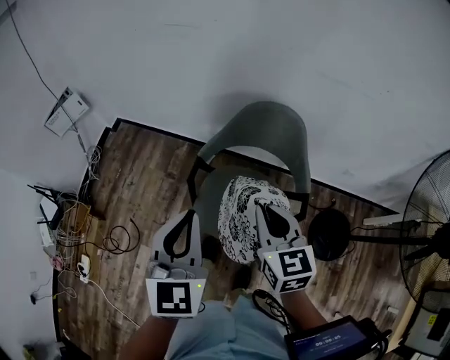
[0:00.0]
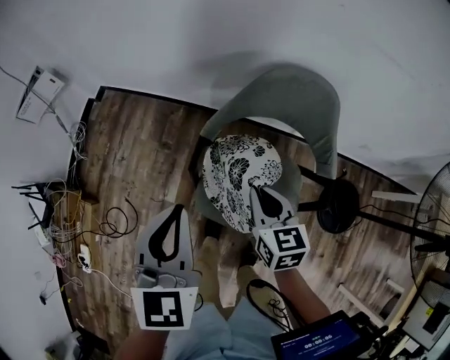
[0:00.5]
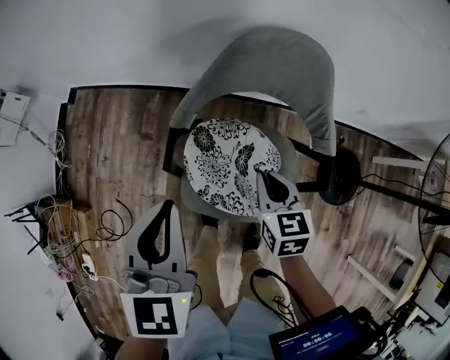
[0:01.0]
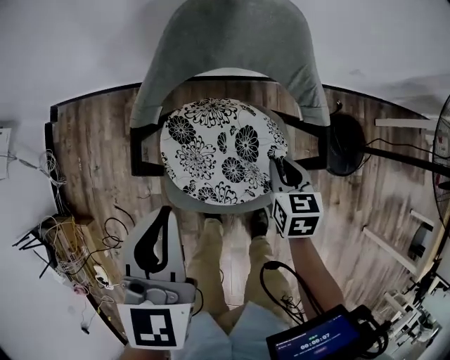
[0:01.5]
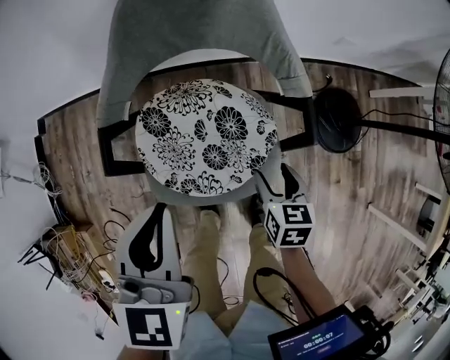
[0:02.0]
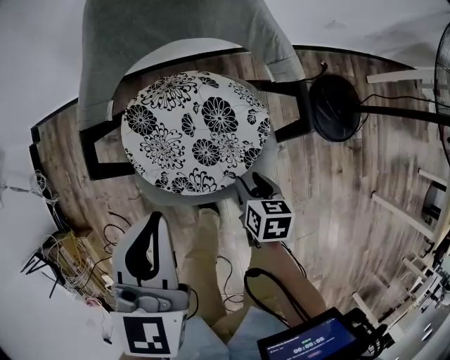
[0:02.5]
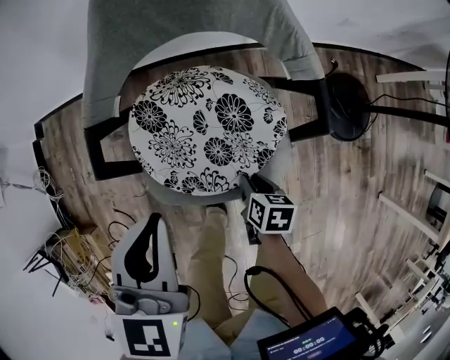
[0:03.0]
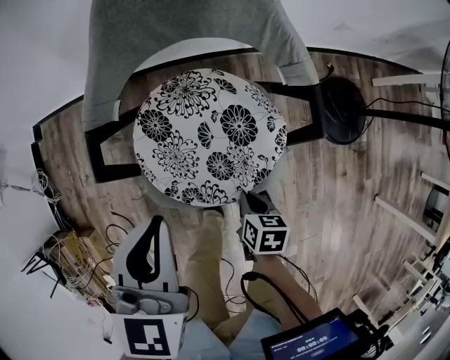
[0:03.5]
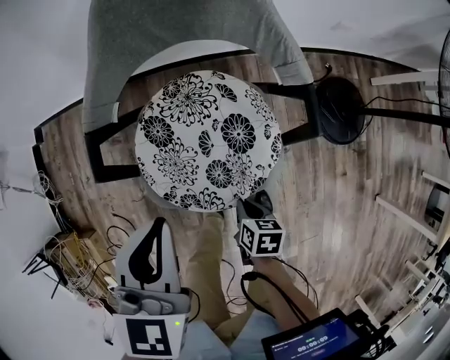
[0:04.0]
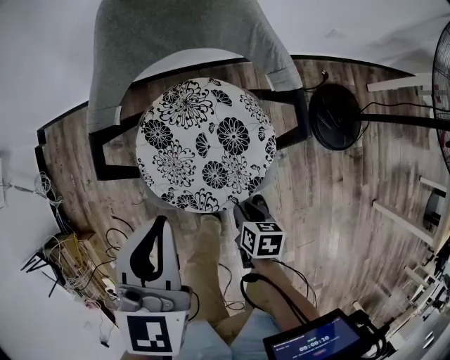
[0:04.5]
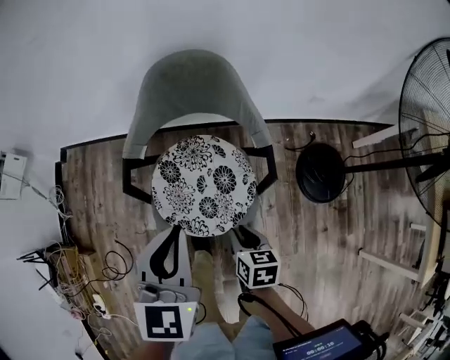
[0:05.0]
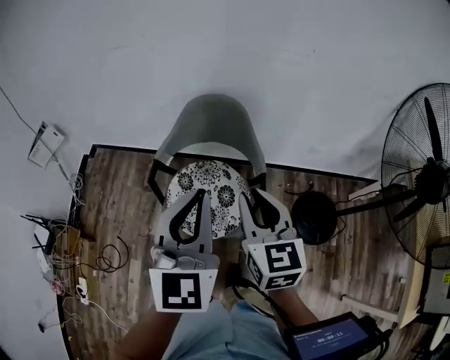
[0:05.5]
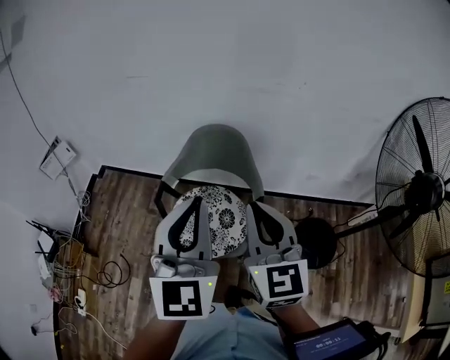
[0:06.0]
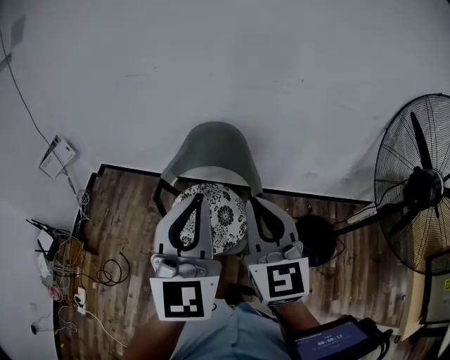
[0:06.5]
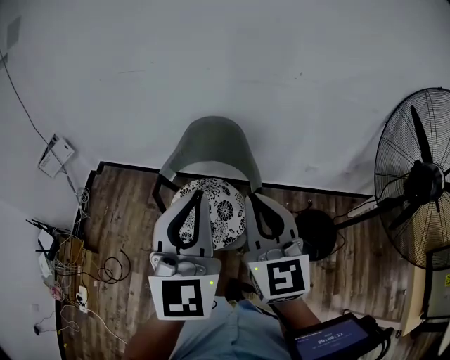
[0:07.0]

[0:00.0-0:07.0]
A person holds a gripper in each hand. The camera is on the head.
0:00.0 to 0:02.0: The right gripper moves downward, roughly 35 cm, changes its angle by roughly 40 degrees, and opens up. Meanwhile the left gripper is displaced downward by approximately 20 cm, and swivels some 30 degrees.
0:02.0 to 0:03.5: The right gripper travels downward, backward and to the left by approximately 15 cm, changes its angle by about 20 degrees, and closes up.
0:03.5 to 0:05.0: The right gripper travels upward by roughly 20 cm. The left gripper shifts about 15 cm upward and to the right.
0:05.0 to 0:07.0: The left gripper moves upward, some 25 cm, and changes its angle by some 30 degrees. Meanwhile the right gripper moves upward, roughly 40 cm, points its fingers some 50 degrees further upward, and closes its fingers.

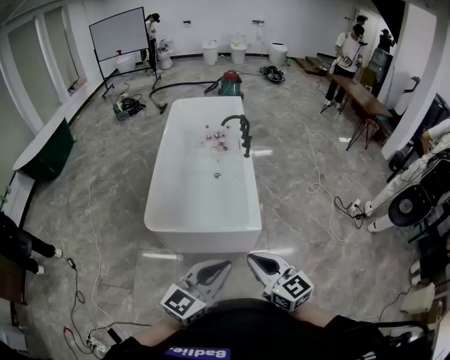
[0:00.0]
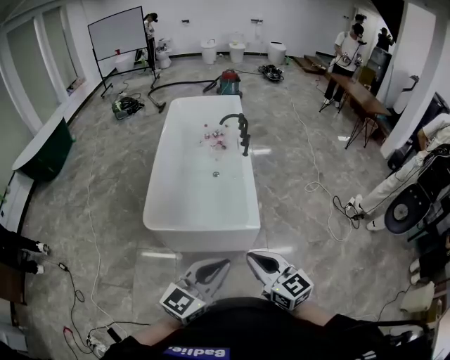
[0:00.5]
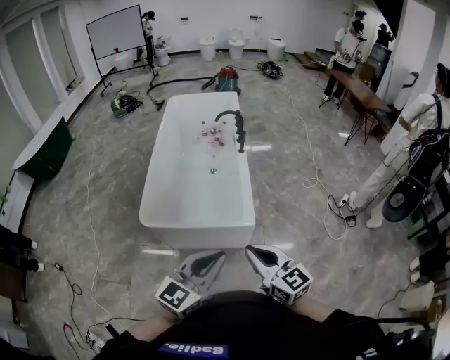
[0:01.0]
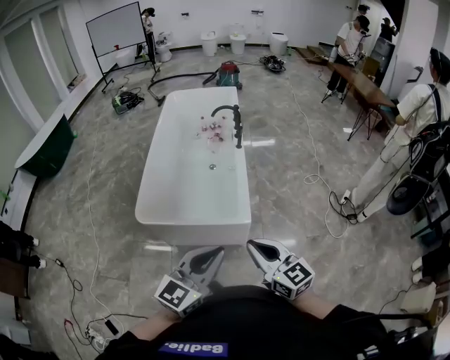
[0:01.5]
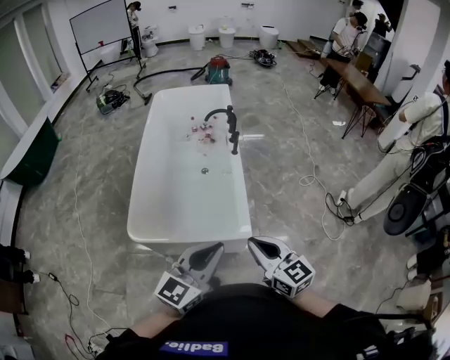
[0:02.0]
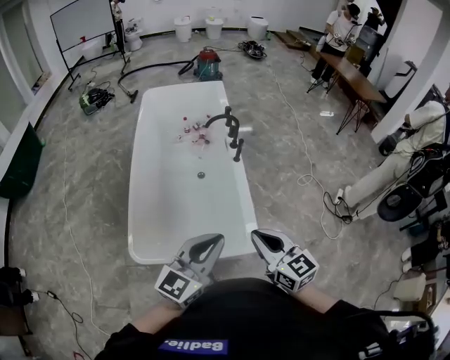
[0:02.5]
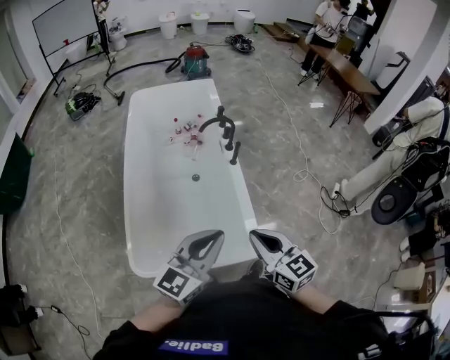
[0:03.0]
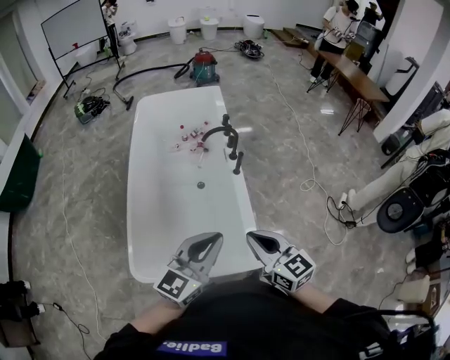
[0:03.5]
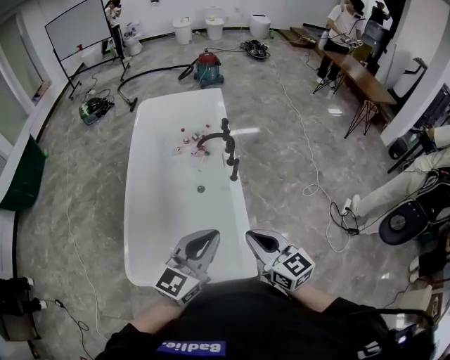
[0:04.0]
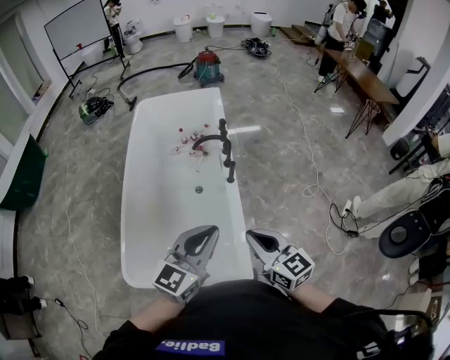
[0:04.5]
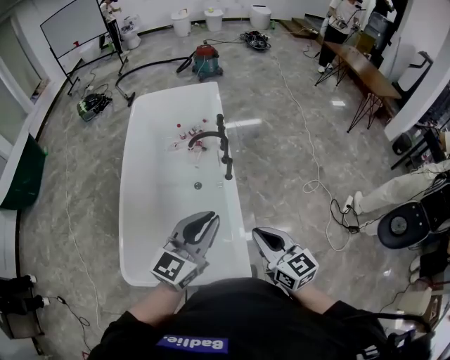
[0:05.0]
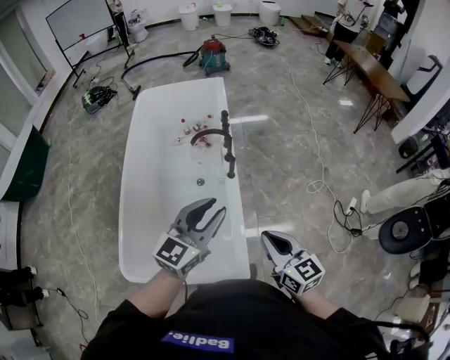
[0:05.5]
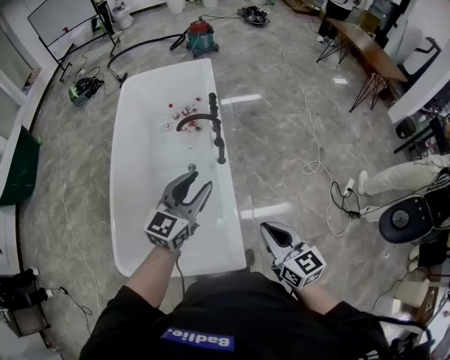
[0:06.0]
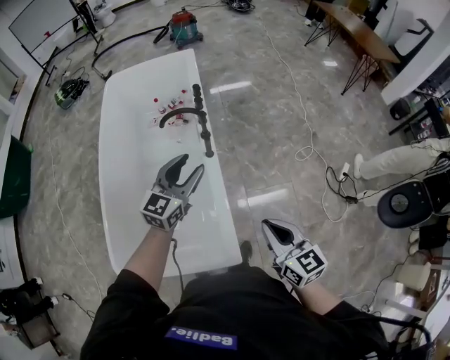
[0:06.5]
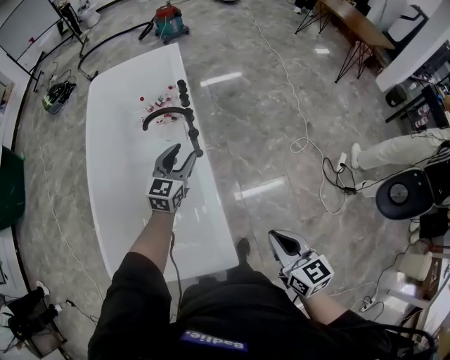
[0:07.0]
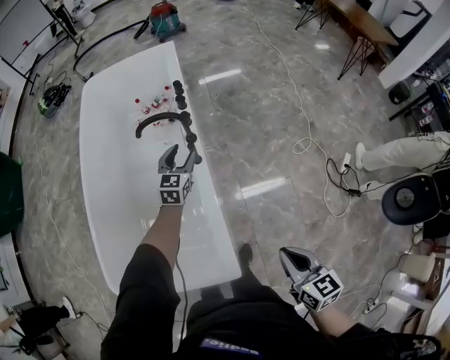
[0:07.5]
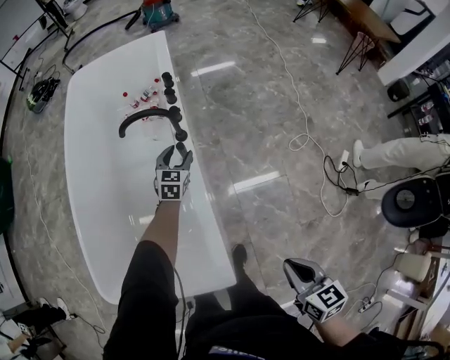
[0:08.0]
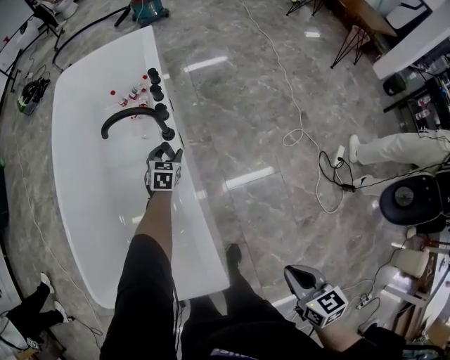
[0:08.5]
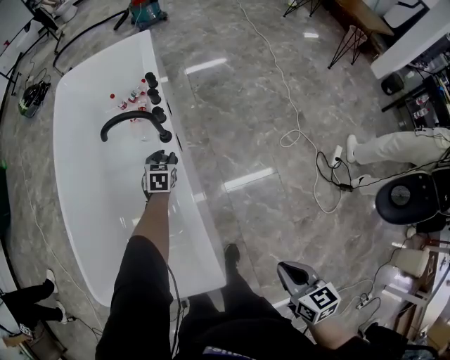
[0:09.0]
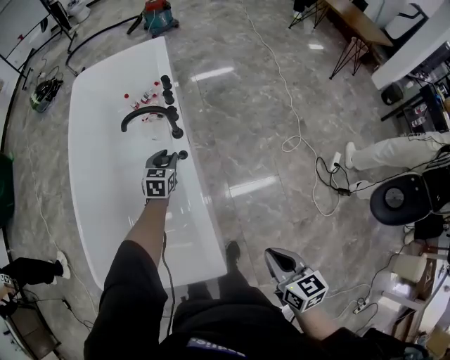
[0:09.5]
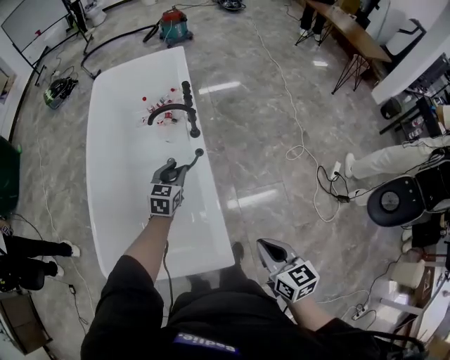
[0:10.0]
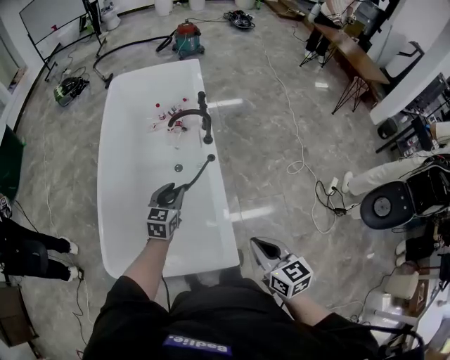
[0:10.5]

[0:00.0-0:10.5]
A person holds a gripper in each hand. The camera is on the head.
0:00.0 to 0:02.0: The grippers both shift forward by some 15 cm.
0:02.0 to 0:04.0: The two grippers go approximately 30 cm forward.
0:04.0 to 0:06.5: The left gripper goes some 30 cm forward and downward, and opens up, while the right gripper shifts roughly 20 cm to the right, forward and downward.
0:06.5 to 0:08.5: The right gripper moves downward and to the right, some 25 cm, and turns by about 30 degrees. Meanwhile the left gripper travels downward and forward by roughly 50 cm, and points its fingers approximately 30 degrees further downward.
0:08.5 to 0:10.5: The left gripper shifts about 40 cm backward, upward and to the left, and closes its fingers, while the right gripper moves to the left and upward, roughly 25 cm, and turns by roughly 20 degrees.

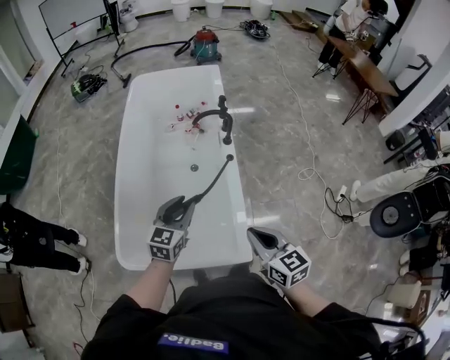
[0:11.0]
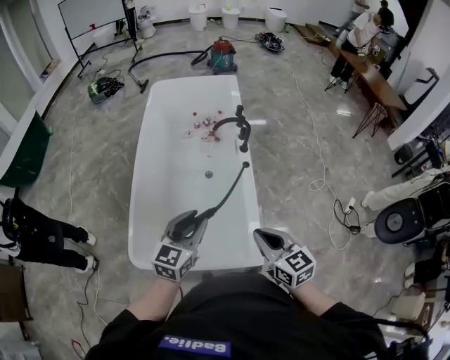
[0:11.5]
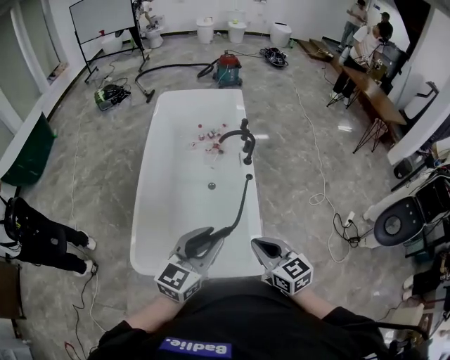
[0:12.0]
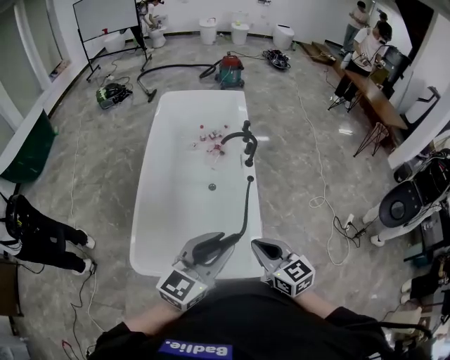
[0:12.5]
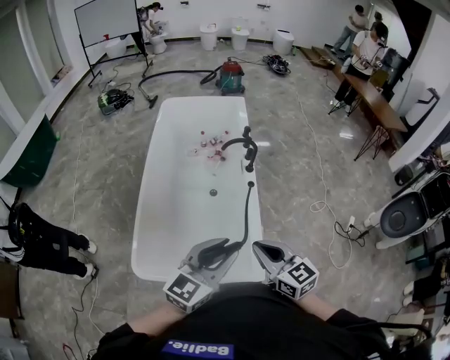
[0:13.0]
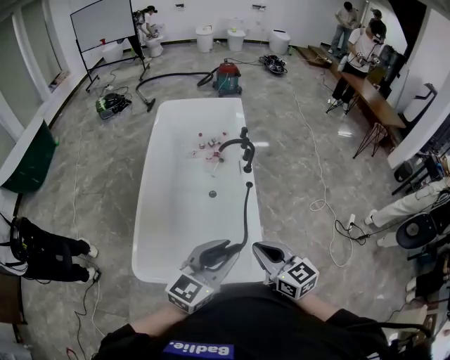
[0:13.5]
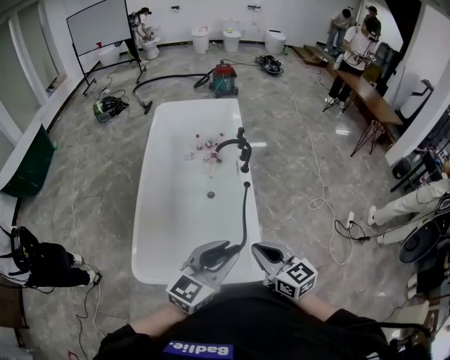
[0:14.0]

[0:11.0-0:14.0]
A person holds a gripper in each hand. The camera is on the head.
0:11.0 to 0:12.5: The right gripper goes roughly 10 cm to the left. Meanwhile the left gripper is displaced upward and backward by about 25 cm, and changes its angle by about 20 degrees.
0:12.5 to 0:14.0: The grippers make only small movements.

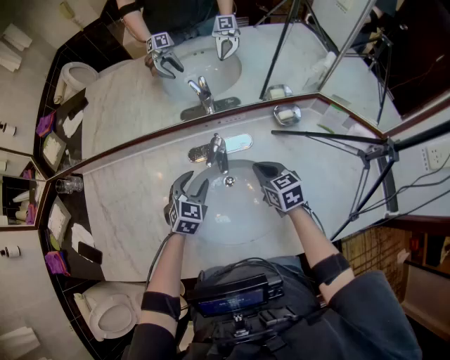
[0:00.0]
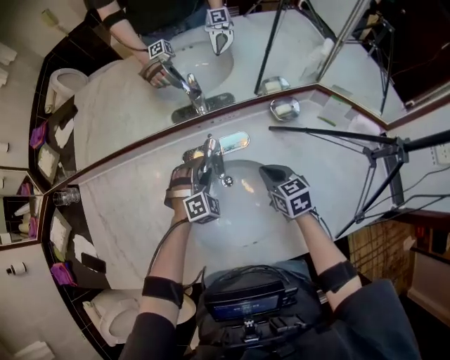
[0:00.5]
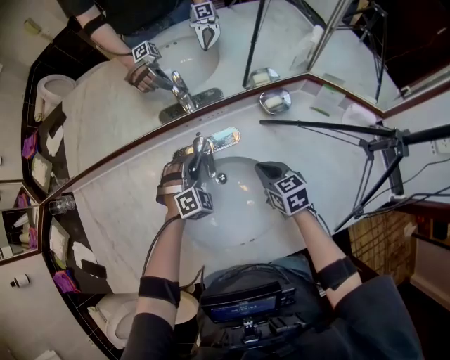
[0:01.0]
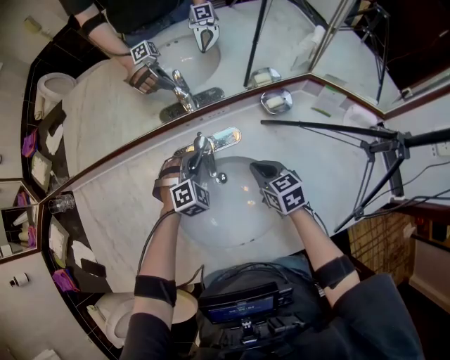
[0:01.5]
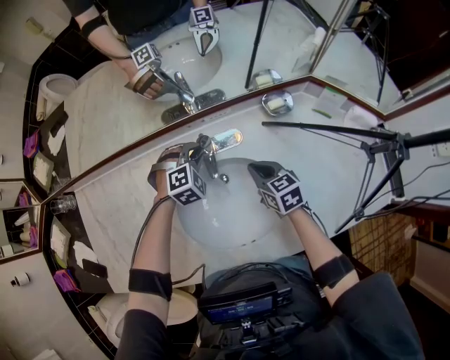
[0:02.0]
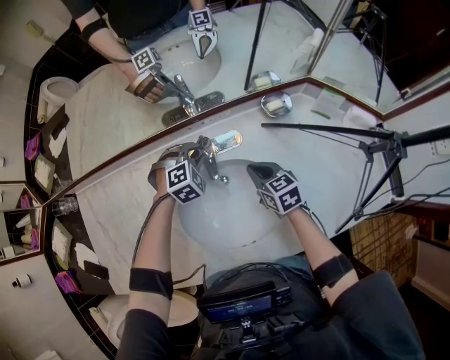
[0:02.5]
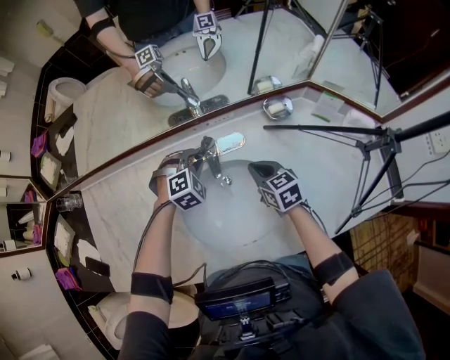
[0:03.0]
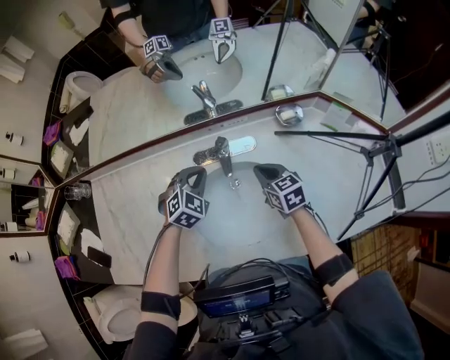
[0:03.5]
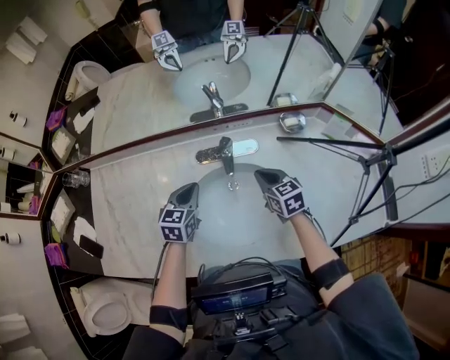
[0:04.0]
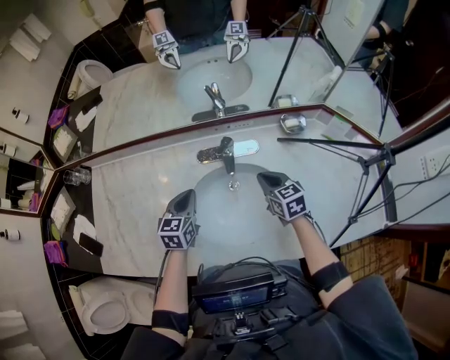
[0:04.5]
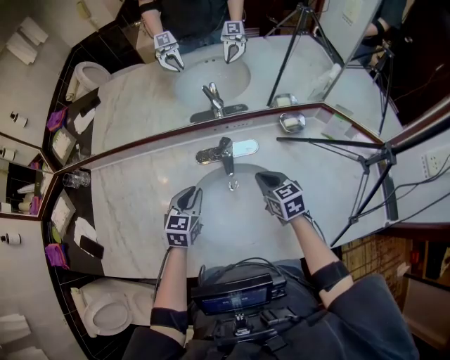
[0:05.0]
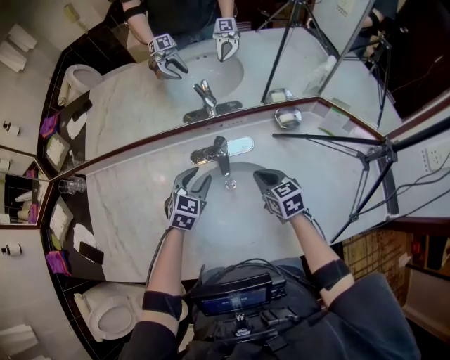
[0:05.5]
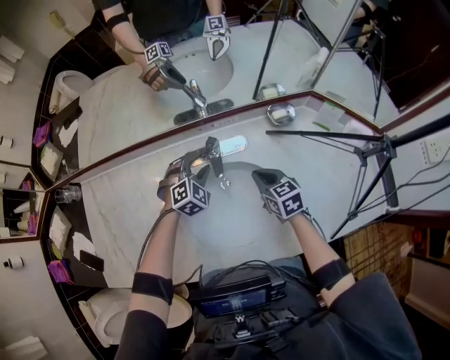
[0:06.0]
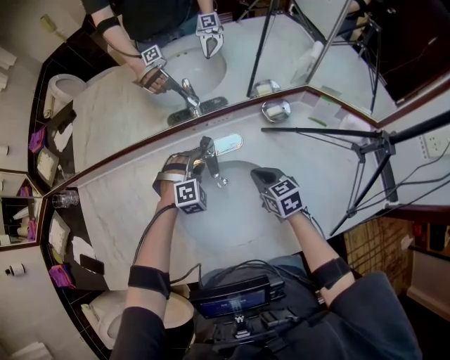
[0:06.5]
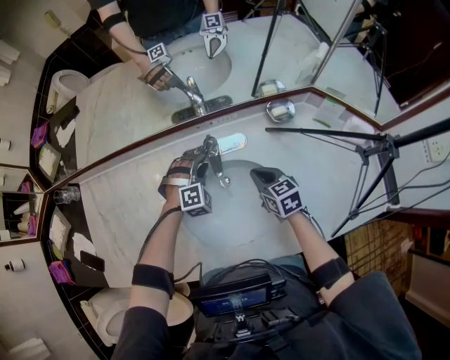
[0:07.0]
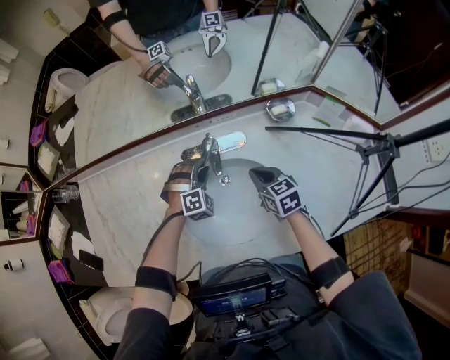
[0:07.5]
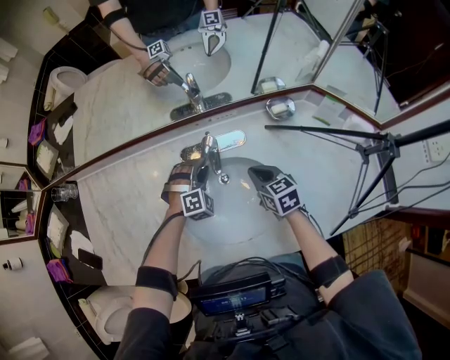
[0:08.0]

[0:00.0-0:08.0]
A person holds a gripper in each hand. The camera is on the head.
0:00.0 to 0:02.0: The left gripper is displaced forward and to the right by some 10 cm, twists approximately 40 degrees clockwise, seen from behind, and closes up.
0:02.0 to 0:04.0: The left gripper heads backward, to the left and upward, covering roughly 20 cm, rolls counterclockwise, seen from behind, by about 70 degrees, and closes, while the right gripper changes place by about 5 cm.
0:04.0 to 0:06.0: The left gripper travels to the right, forward and downward by approximately 15 cm, twists some 60 degrees clockwise, seen from behind, and opens up.
